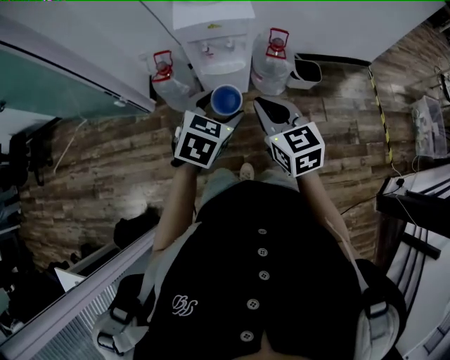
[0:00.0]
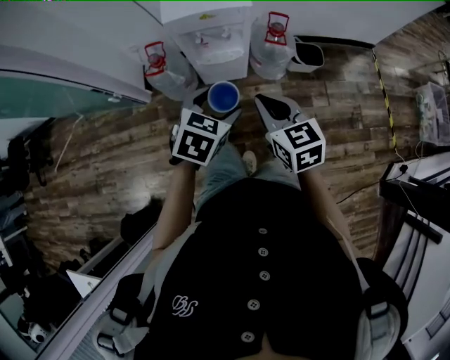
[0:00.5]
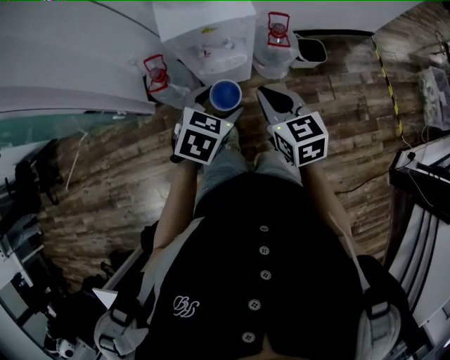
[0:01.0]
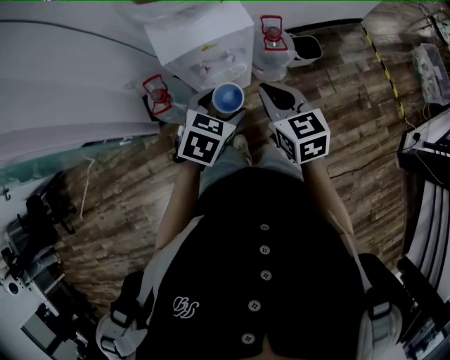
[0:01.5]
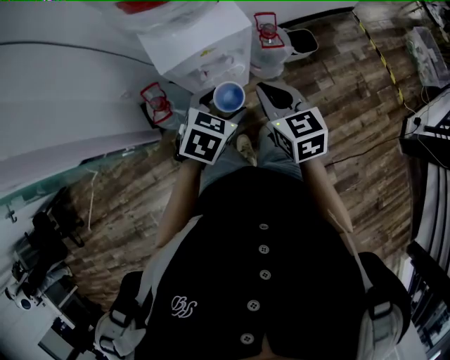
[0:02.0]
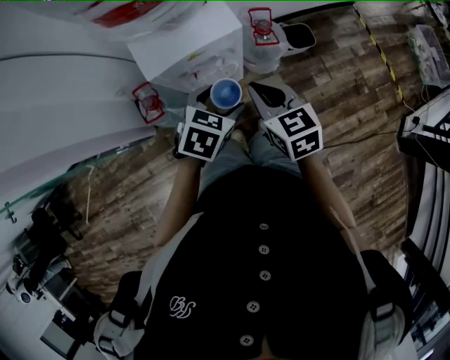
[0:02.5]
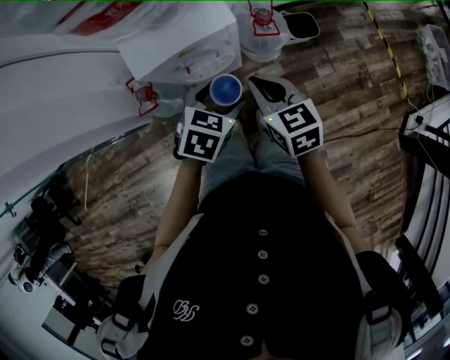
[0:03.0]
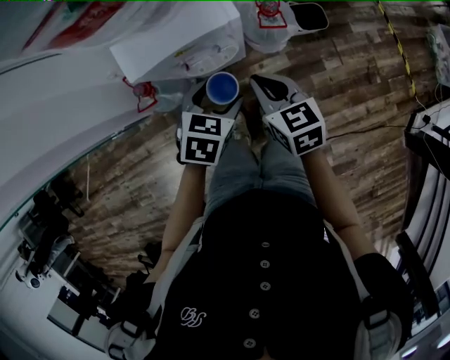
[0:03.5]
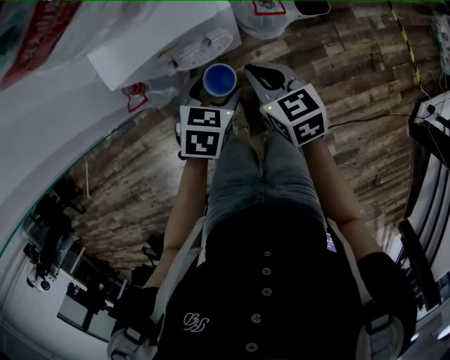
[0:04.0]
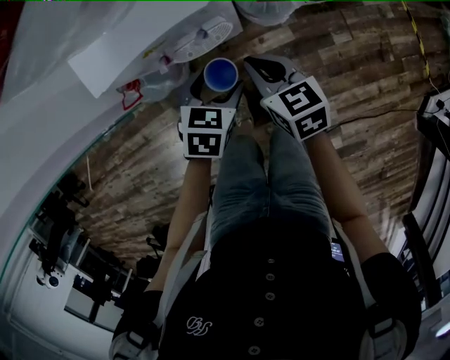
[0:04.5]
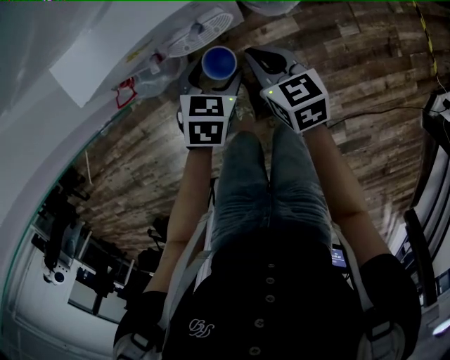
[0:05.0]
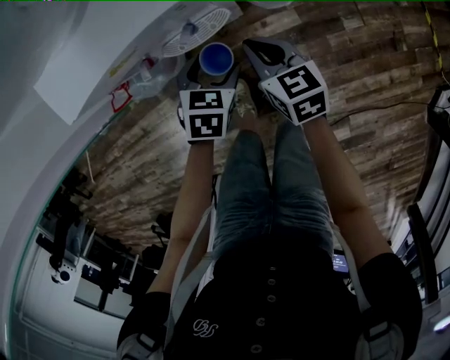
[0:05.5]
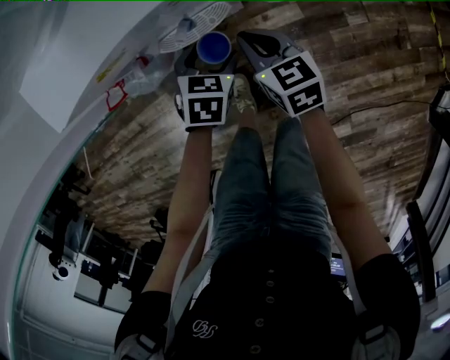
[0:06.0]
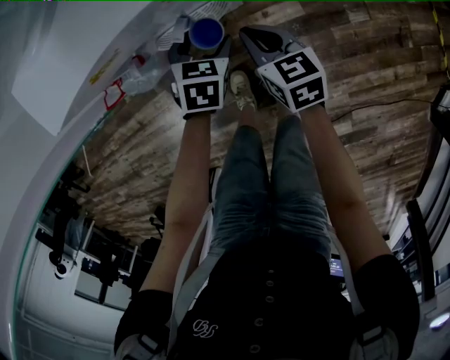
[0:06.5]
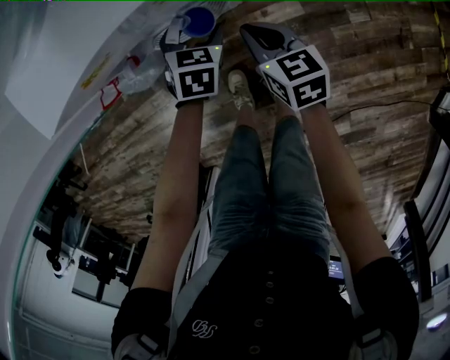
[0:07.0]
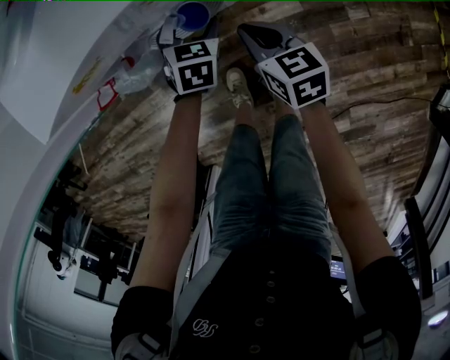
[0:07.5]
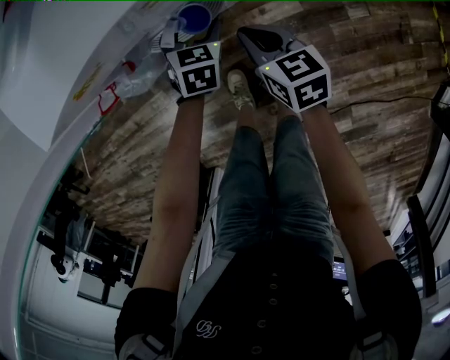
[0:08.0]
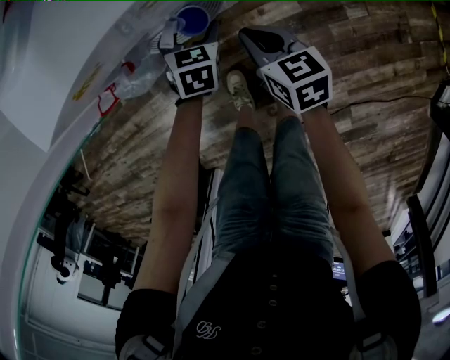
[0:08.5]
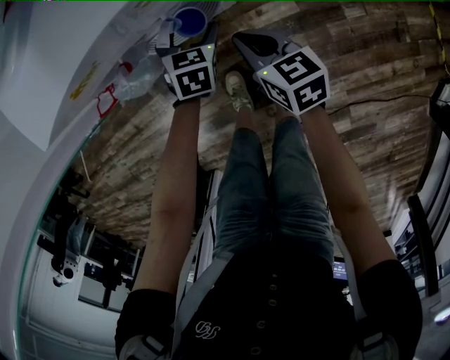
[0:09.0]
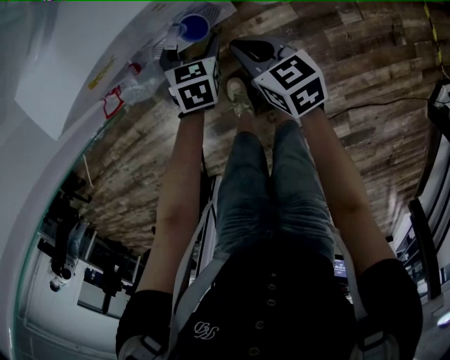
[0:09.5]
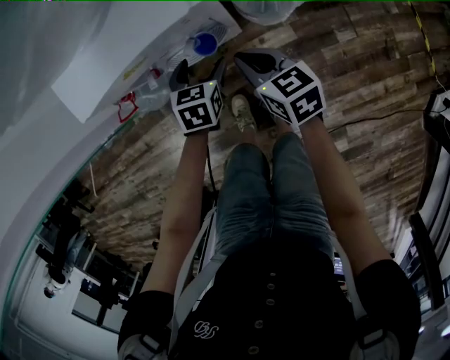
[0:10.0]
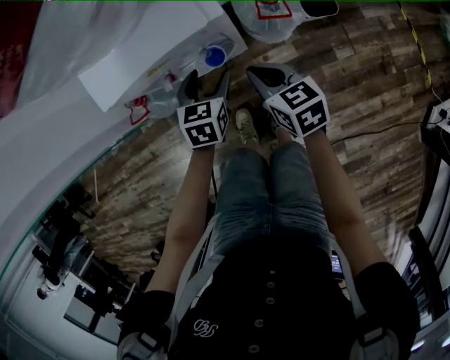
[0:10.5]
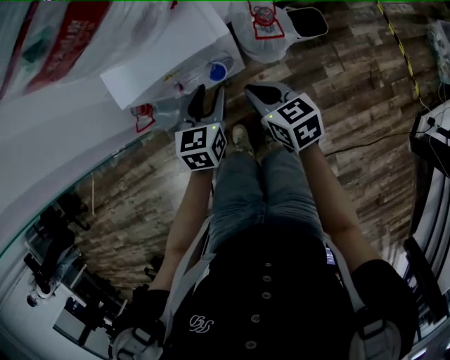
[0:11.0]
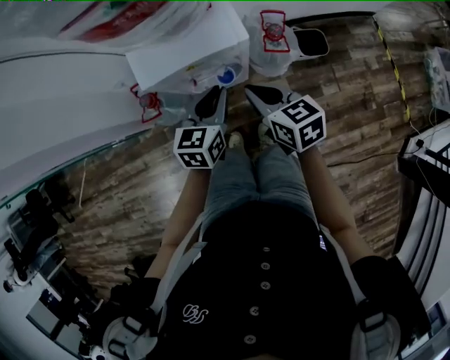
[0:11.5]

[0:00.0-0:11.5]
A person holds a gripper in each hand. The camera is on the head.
0:00.0 to 0:02.0: The right gripper shifts about 15 cm forward, and changes its angle by roughly 20 degrees, while the left gripper heads forward and downward, covering roughly 20 cm, and turns by roughly 20 degrees.
0:02.0 to 0:04.0: Both grippers travel together downward and forward, approximately 15 cm.
0:04.0 to 0:06.0: The grippers both shift downward by roughly 15 cm.
0:06.0 to 0:07.5: The left gripper travels forward by approximately 5 cm.
0:07.5 to 0:09.5: The grippers stay close to where they were, moving slightly.
0:09.5 to 0:11.5: The grippers both shift upward by approximately 25 cm. The left gripper changes its angle by roughly 30 degrees, and closes.

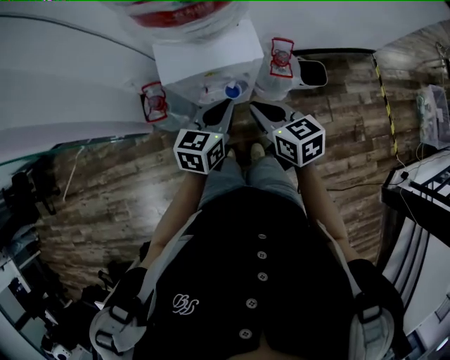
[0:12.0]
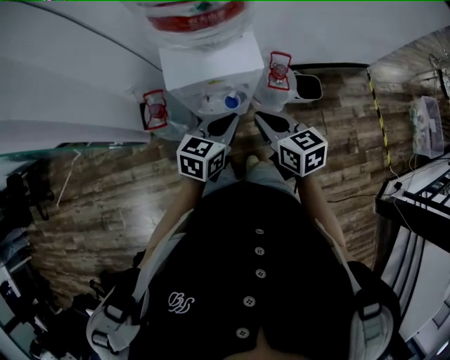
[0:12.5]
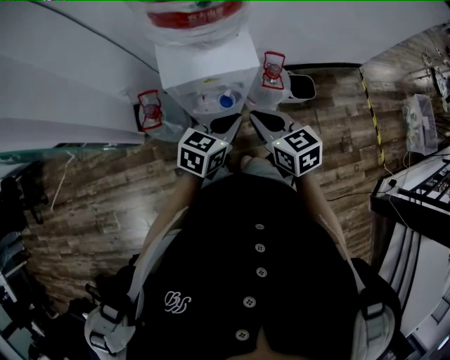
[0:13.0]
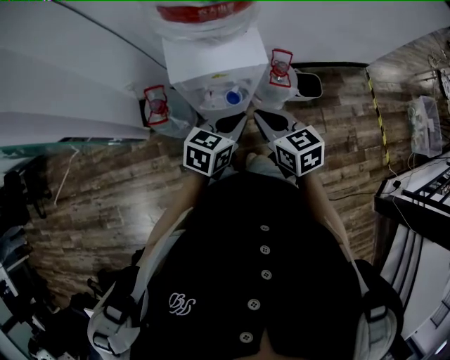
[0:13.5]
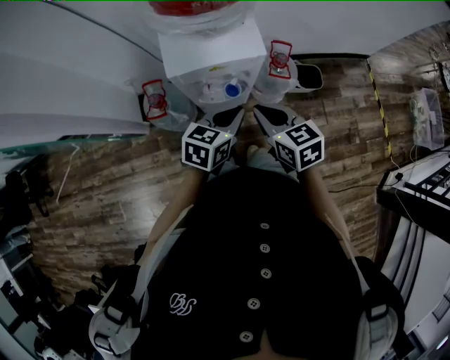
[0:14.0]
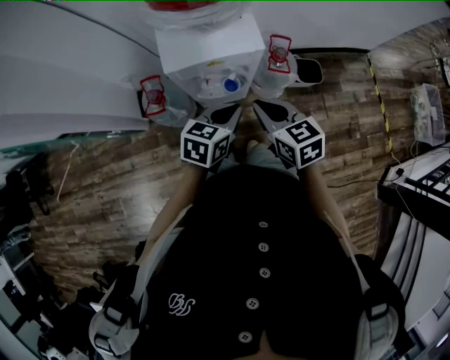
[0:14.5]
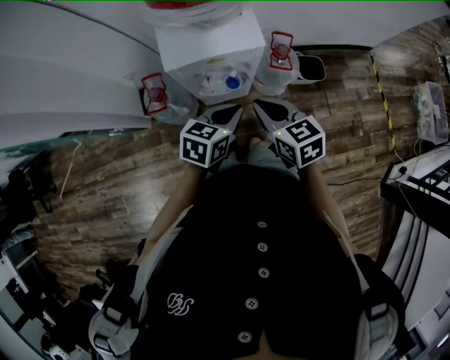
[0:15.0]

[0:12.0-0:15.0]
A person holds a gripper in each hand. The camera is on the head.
0:12.0 to 0:13.5: There are only small adjustments of the grippers.
0:13.5 to 0:15.0: The grippers make only small movements.

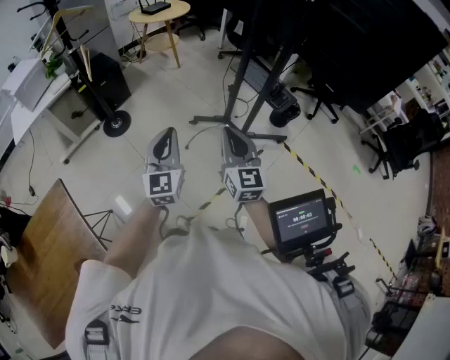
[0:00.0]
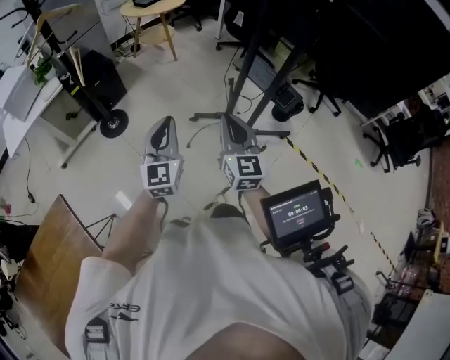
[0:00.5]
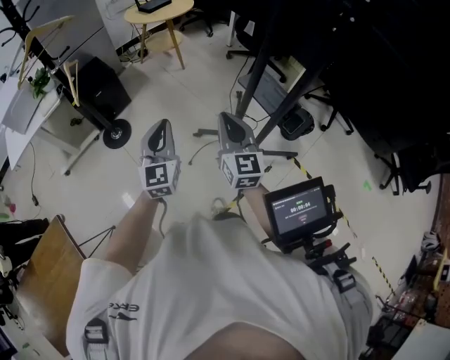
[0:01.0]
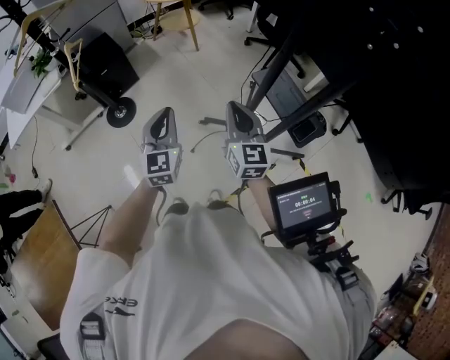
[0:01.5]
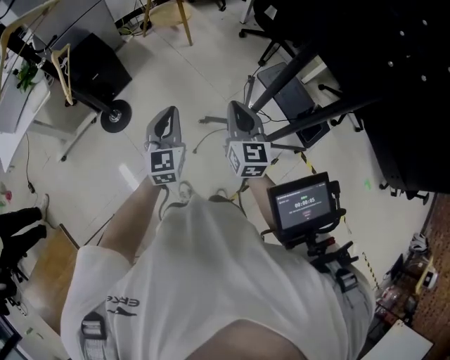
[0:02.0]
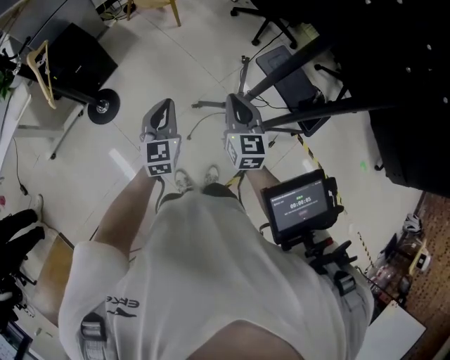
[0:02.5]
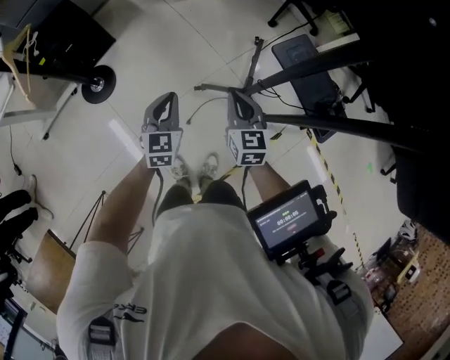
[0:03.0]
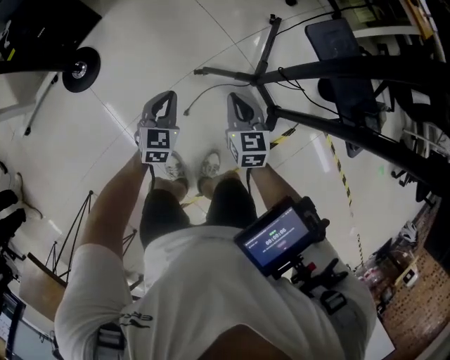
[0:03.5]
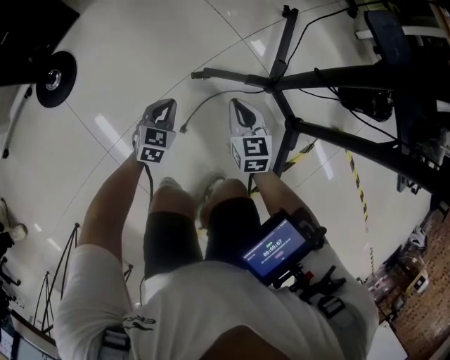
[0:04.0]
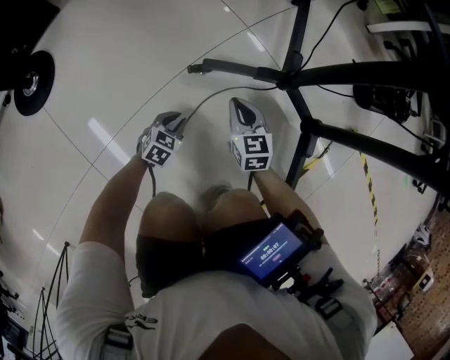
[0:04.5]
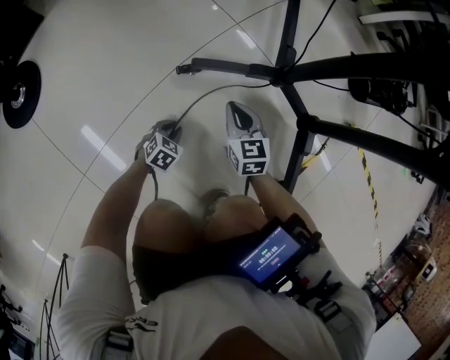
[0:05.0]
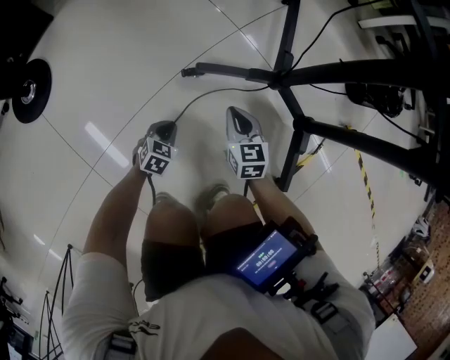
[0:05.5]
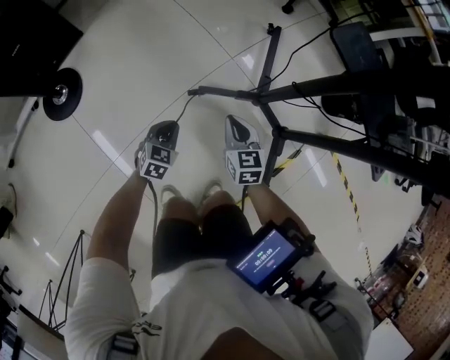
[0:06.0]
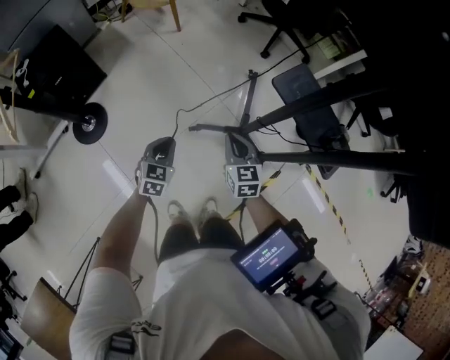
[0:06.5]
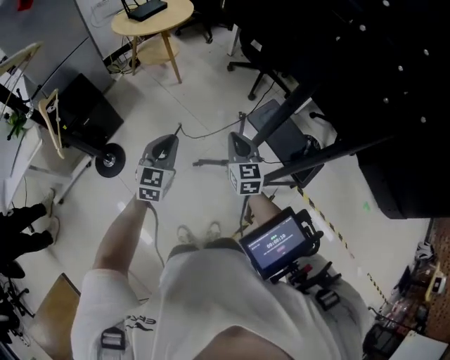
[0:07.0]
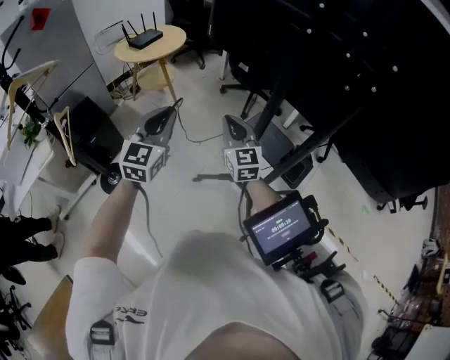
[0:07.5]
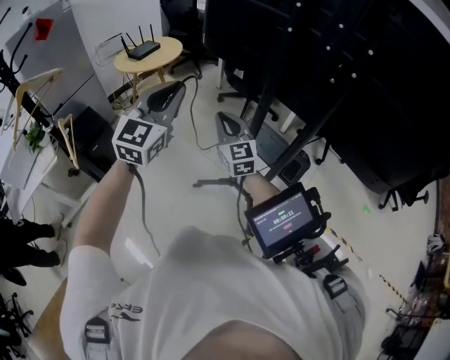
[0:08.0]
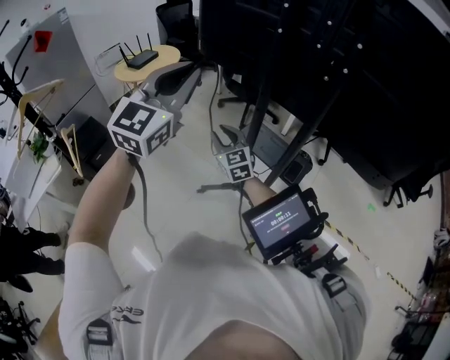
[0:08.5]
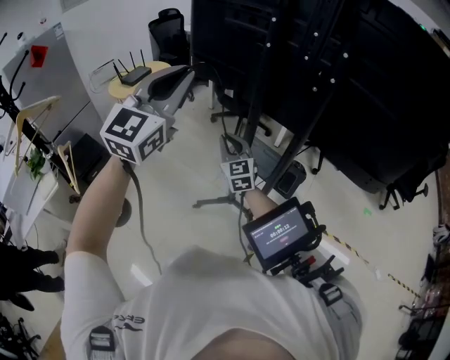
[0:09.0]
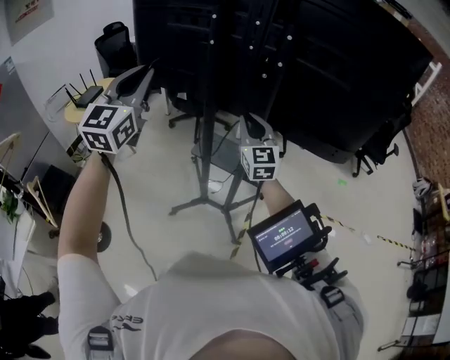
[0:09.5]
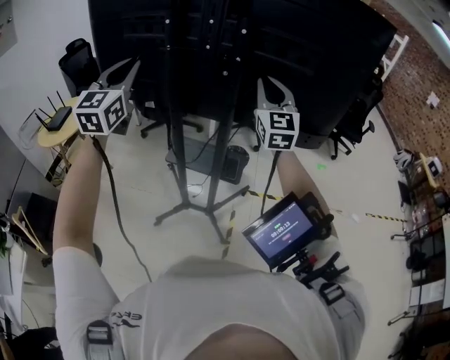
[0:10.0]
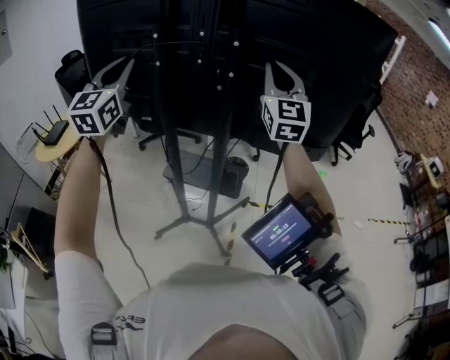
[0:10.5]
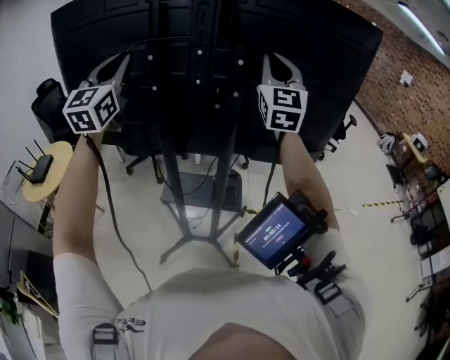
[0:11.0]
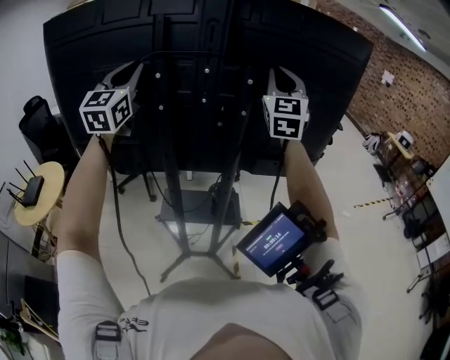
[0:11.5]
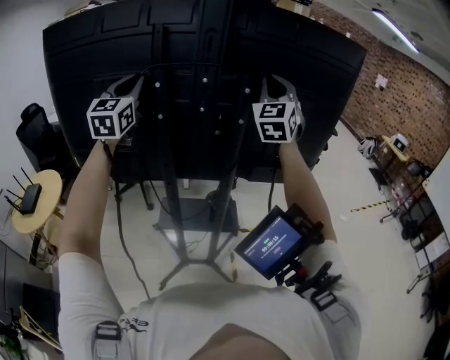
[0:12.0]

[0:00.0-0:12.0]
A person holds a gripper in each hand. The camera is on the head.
0:00.0 to 0:02.0: The grippers both shift forward by some 40 cm.
0:02.0 to 0:04.0: Both grippers travel together downward, about 70 cm. The left gripper points its fingers approximately 30 degrees further downward; the right gripper swivels roughly 20 degrees.
0:04.0 to 0:06.0: The left gripper goes downward and returns, about 25 cm each way; the right gripper goes downward and returns, some 15 cm each way.
0:06.0 to 0:08.0: The grippers both shift upward by roughly 80 cm. The right gripper tips its fingers upward by approximately 40 degrees. Meanwhile the left gripper points its fingers about 50 degrees further upward.
0:08.0 to 0:10.0: The left gripper ends up some 20 cm from where it was; the right gripper shifts by some 40 cm, swivels approximately 50 degrees, and opens, then closes once more.
0:10.0 to 0:12.0: The right gripper shifts roughly 15 cm upward and forward, and swivels some 40 degrees. Meanwhile the left gripper goes about 20 cm forward.
